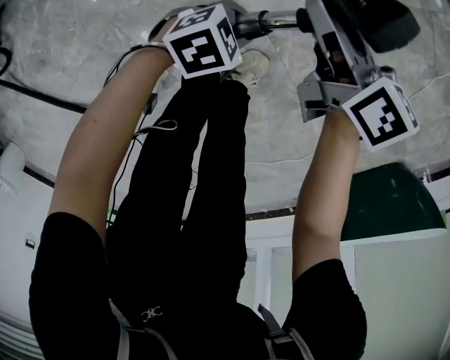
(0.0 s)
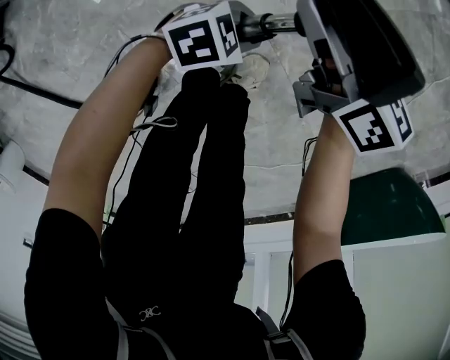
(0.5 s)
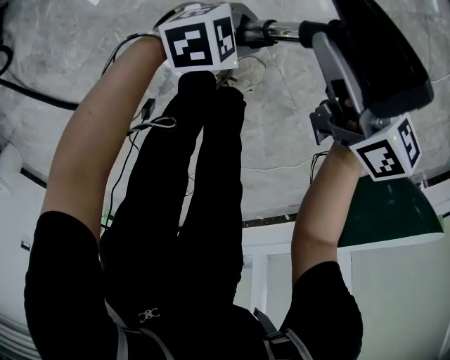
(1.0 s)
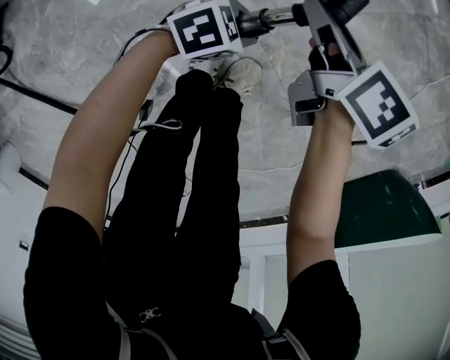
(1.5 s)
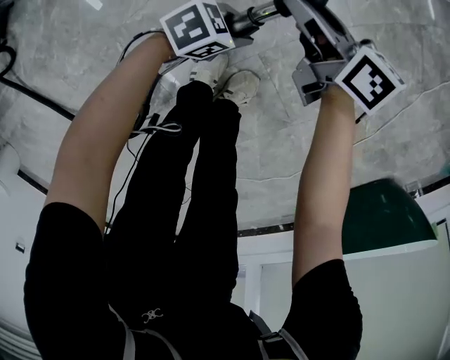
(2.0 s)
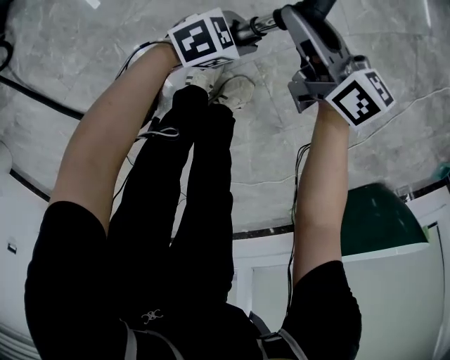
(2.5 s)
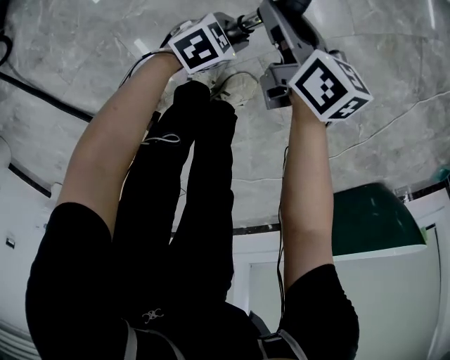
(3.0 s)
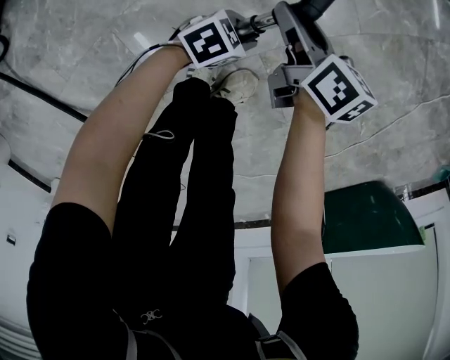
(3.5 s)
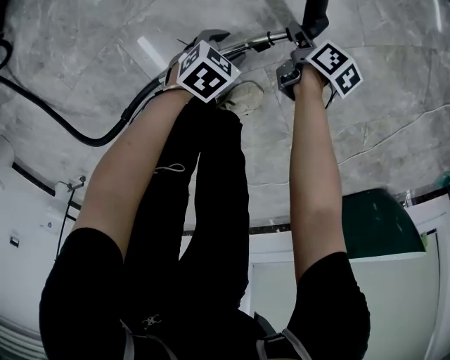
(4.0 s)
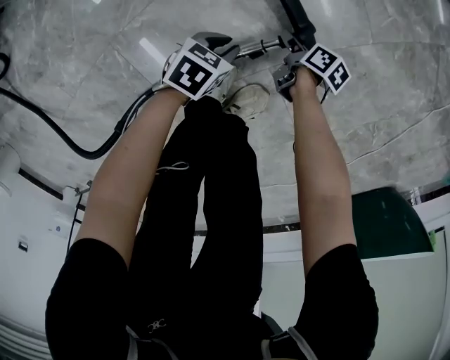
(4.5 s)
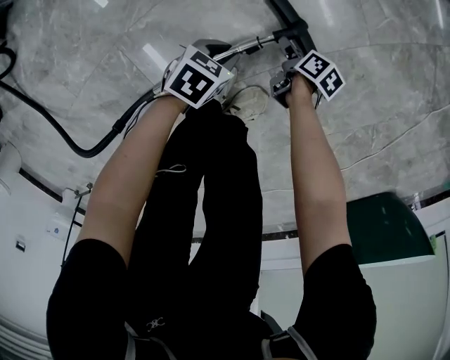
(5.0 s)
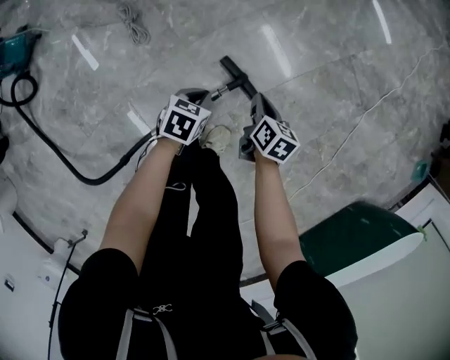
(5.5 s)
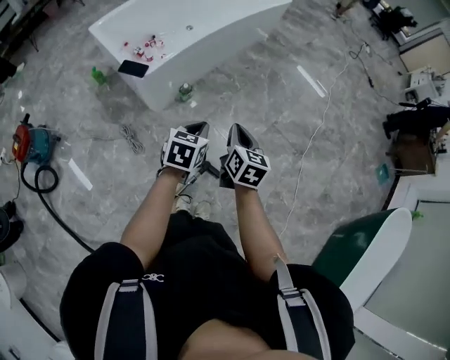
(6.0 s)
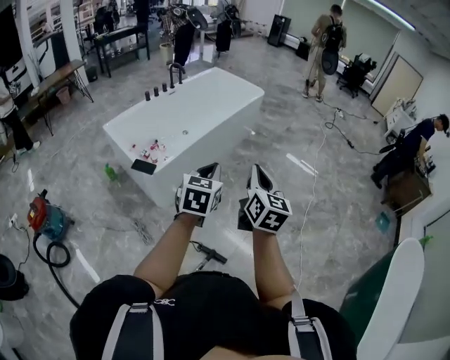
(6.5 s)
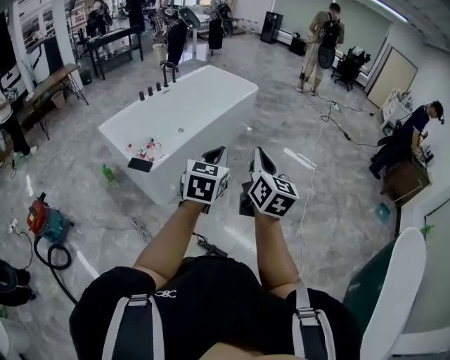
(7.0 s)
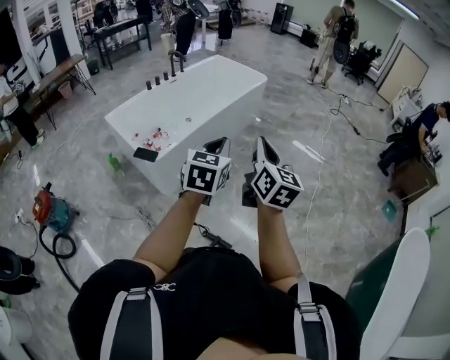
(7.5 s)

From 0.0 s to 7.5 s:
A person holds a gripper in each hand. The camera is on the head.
From 0.0 s to 2.0 s: The right gripper moves about 5 cm. The left gripper ends up some 5 cm from where it was.
From 2.0 s to 4.0 s: The left gripper heads downward, covering roughly 10 cm, changes its angle by roughly 30 degrees, and opens up, while the right gripper shifts about 25 cm downward, and angles its fingers downward, by some 30 degrees.
From 4.0 s to 5.5 s: Both grippers travel together upward, roughly 25 cm. The right gripper swivels some 30 degrees, and closes up. Meanwhile the left gripper closes up.
From 5.5 s to 7.5 s: The grippers both shift upward by roughly 70 cm. The right gripper tilts its fingers roughly 50 degrees upward, while the left gripper points its fingers approximately 40 degrees further upward.

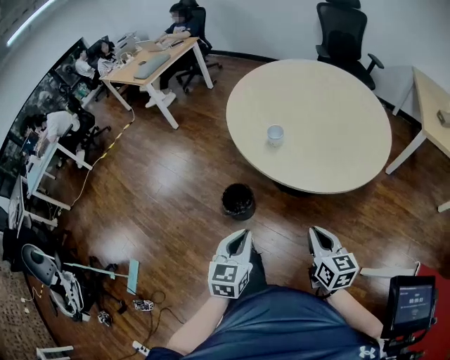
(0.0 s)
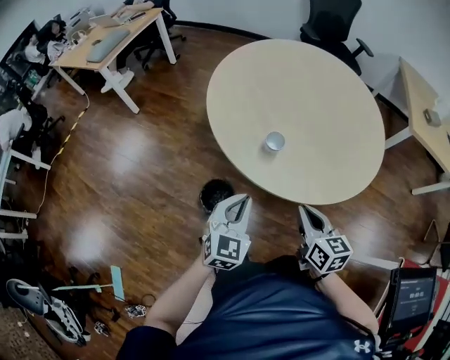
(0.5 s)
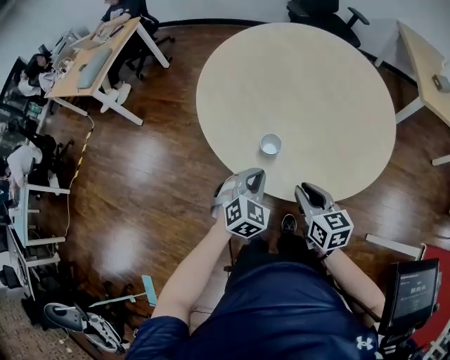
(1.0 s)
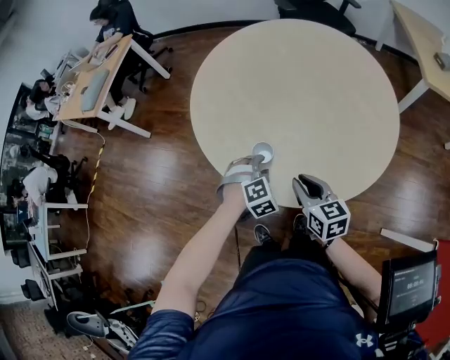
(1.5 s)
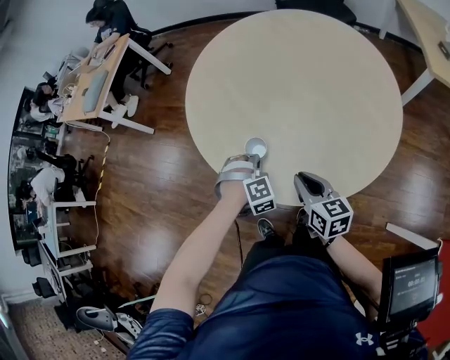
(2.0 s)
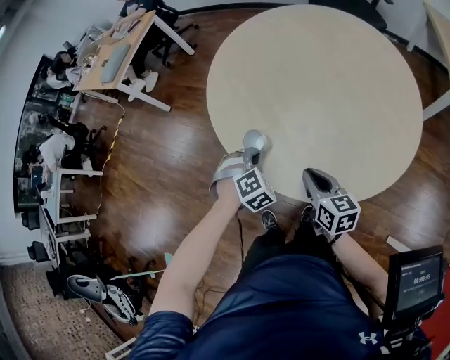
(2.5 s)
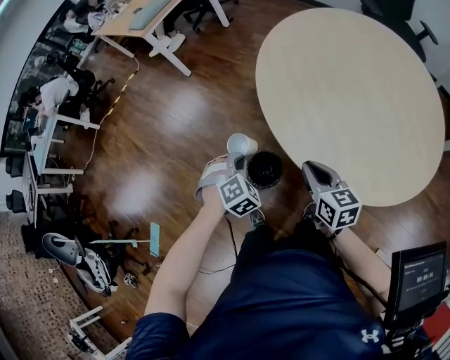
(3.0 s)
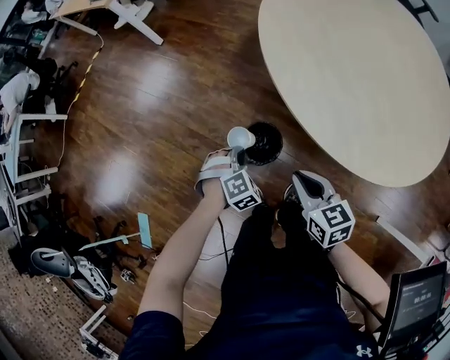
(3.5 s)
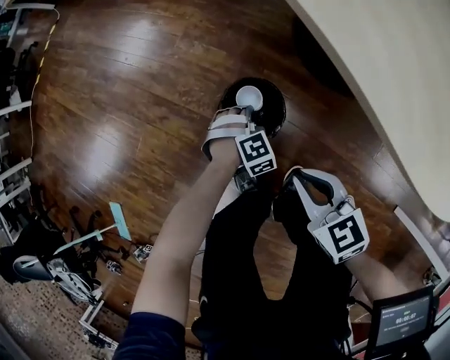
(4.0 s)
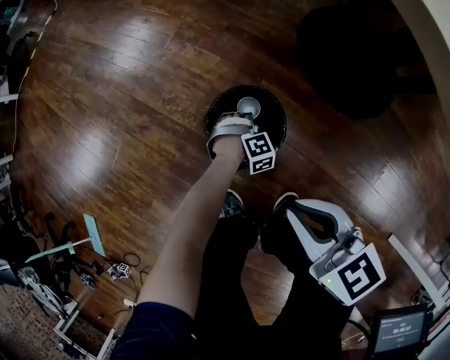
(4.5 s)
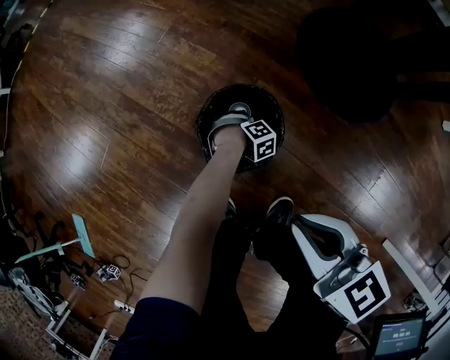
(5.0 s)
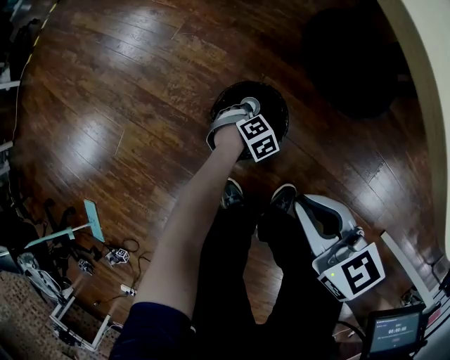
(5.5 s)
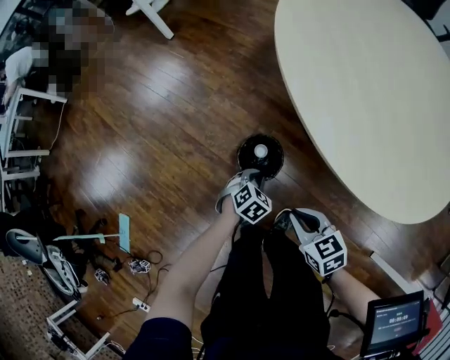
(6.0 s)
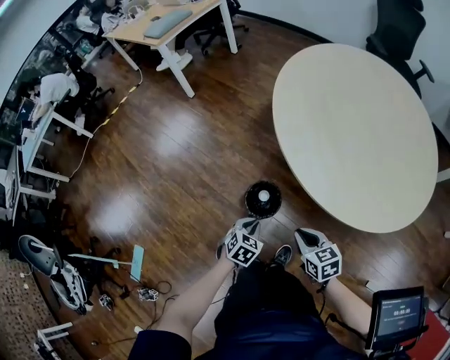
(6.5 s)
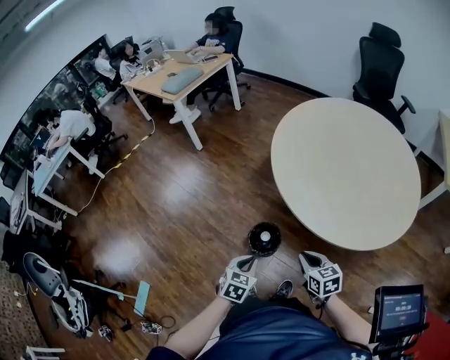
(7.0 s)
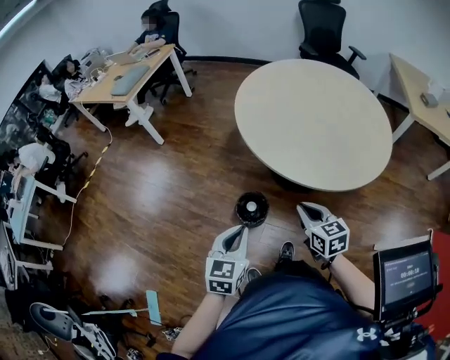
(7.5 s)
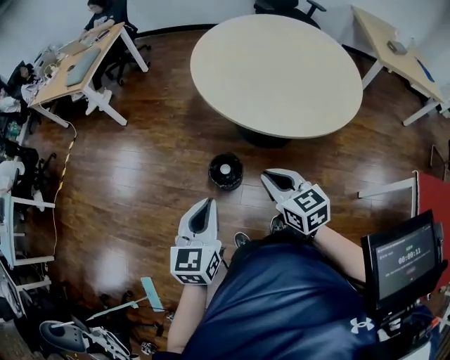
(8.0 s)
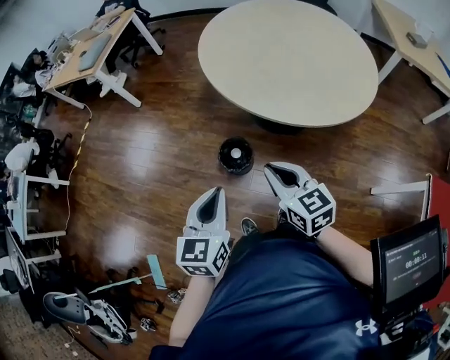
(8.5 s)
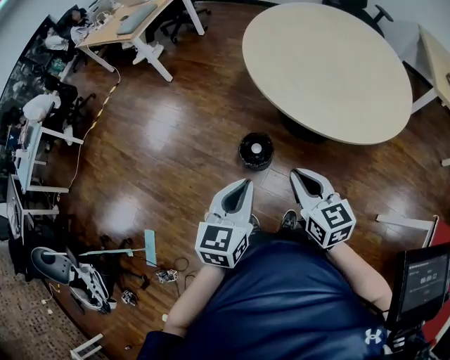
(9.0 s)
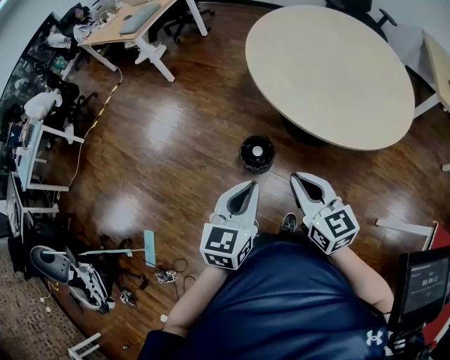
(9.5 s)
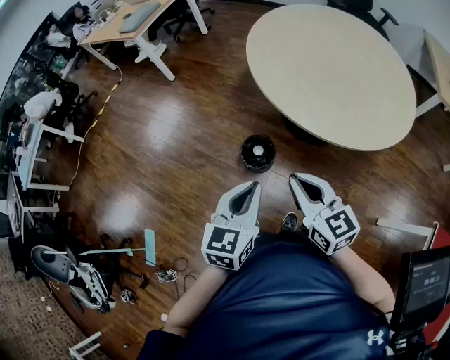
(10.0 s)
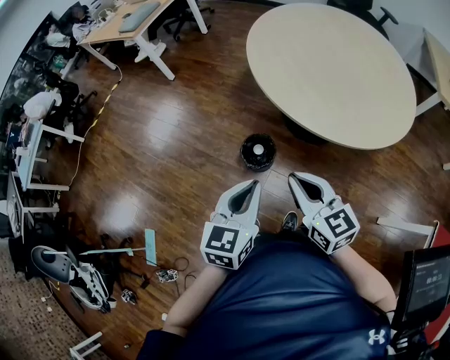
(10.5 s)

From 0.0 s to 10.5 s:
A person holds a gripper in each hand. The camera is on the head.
From 0.0 s to 2.0 s: The right gripper shifts some 25 cm forward. The left gripper is displaced forward and downward by approximately 35 cm, rotates around the line of its fingers by approximately 90 degrees, clockwise from behind, and opens, then closes once more.
From 2.0 s to 4.0 s: The right gripper is displaced to the left and downward by approximately 30 cm, and rotates approximately 40 degrees; the left gripper is displaced downward and to the left by some 40 cm, and turns by some 30 degrees.
From 4.0 s to 6.5 s: The left gripper is displaced upward by some 20 cm, and twists roughly 50 degrees counterclockwise, seen from behind. Meanwhile the right gripper moves upward, about 5 cm.
From 6.5 s to 8.5 s: The left gripper shifts roughly 30 cm upward, and points its fingers some 30 degrees further upward. Meanwhile the right gripper moves upward and backward, some 25 cm, and rotates approximately 30 degrees.
From 8.5 s to 10.5 s: The grippers stay close to where they were, moving slightly.

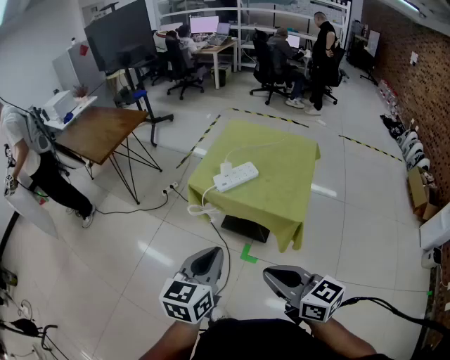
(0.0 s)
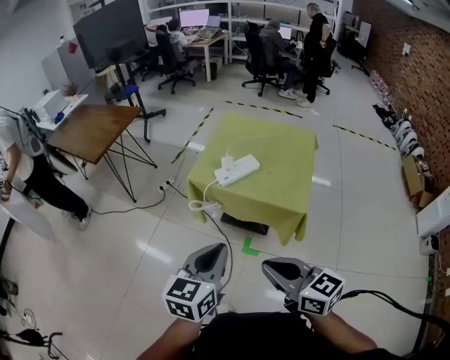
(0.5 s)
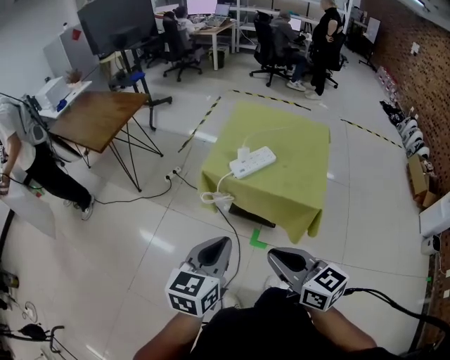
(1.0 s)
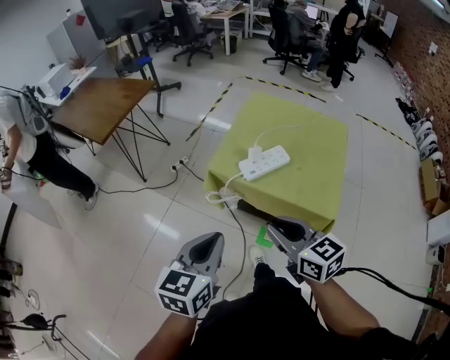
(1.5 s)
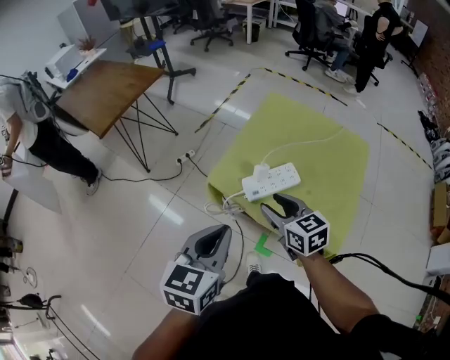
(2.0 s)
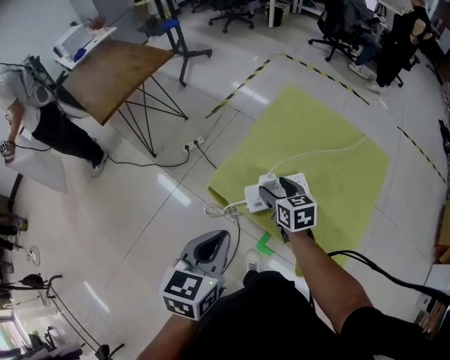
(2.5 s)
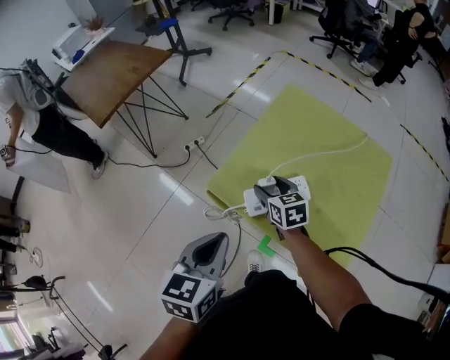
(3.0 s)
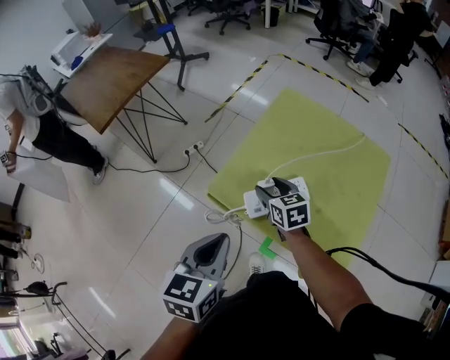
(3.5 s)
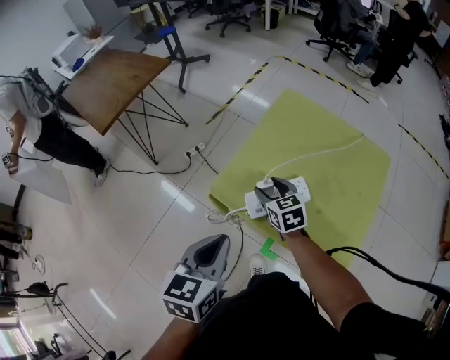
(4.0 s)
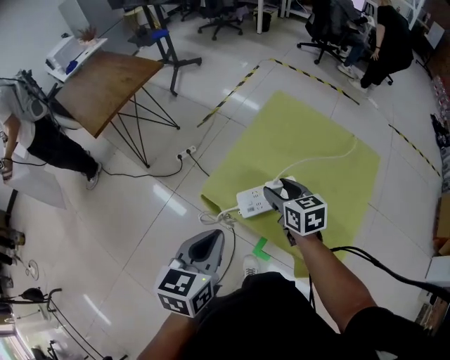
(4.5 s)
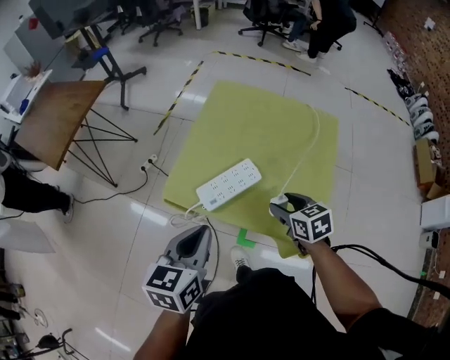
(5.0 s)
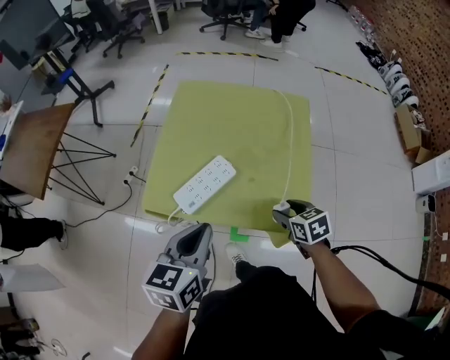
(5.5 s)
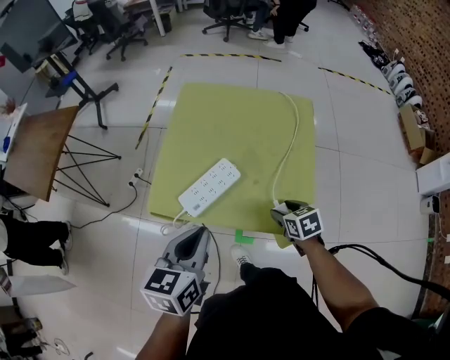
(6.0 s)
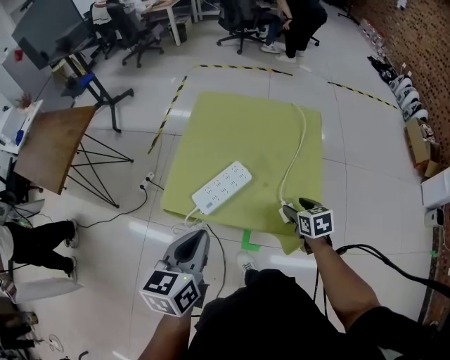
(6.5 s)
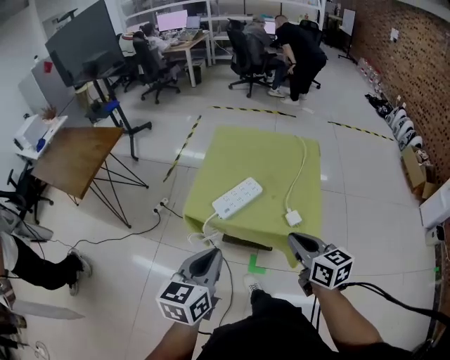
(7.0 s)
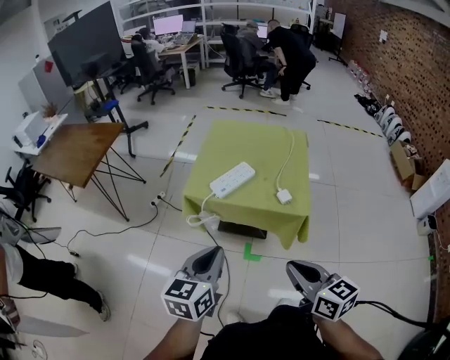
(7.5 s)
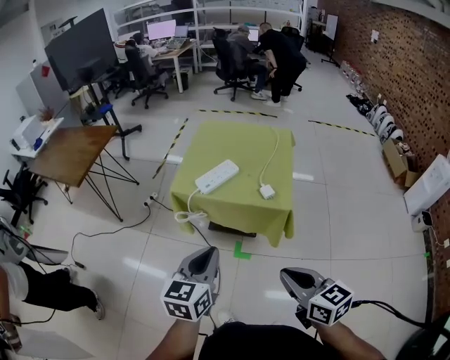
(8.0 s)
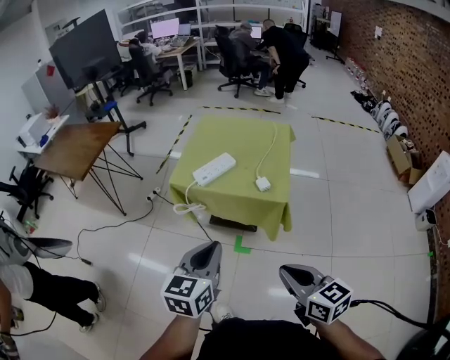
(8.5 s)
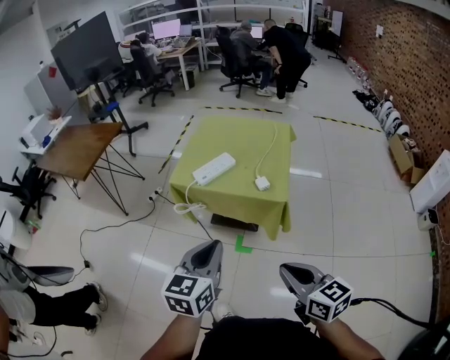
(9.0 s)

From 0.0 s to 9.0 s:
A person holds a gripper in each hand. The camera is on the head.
From 0.0 s to 2.0 s: The left gripper heads forward, covering some 25 cm. Meanwhile the right gripper heads forward, covering some 40 cm, and opens.
From 2.0 s to 4.5 s: The right gripper moves forward and downward, some 15 cm; the left gripper goes roughly 10 cm forward and downward.
From 4.5 s to 7.0 s: The right gripper heads backward, to the right and upward, covering some 30 cm, swivels some 20 degrees, and closes its fingers, while the left gripper travels backward and upward by approximately 15 cm, and changes its angle by roughly 20 degrees.
From 7.0 s to 9.0 s: The right gripper shifts approximately 30 cm backward; the left gripper shifts approximately 20 cm backward and to the right.
